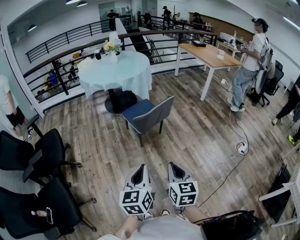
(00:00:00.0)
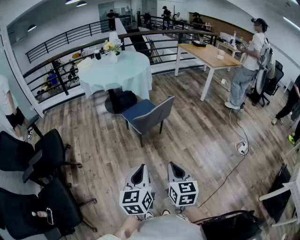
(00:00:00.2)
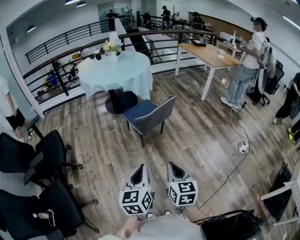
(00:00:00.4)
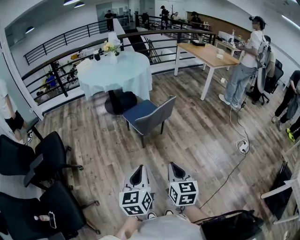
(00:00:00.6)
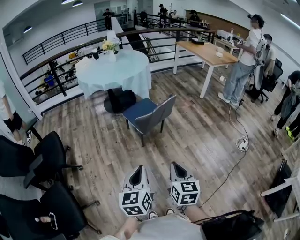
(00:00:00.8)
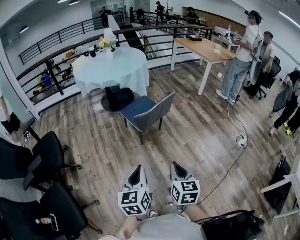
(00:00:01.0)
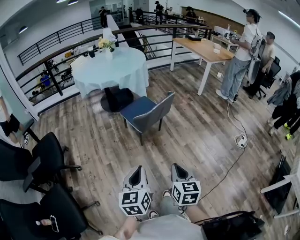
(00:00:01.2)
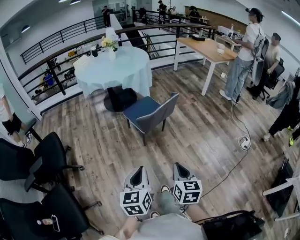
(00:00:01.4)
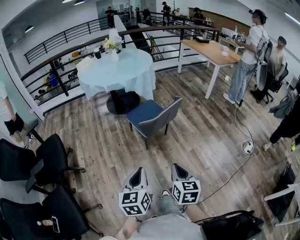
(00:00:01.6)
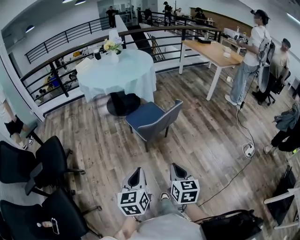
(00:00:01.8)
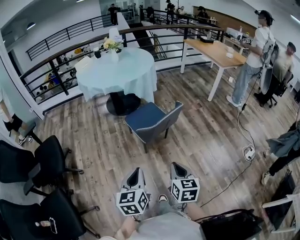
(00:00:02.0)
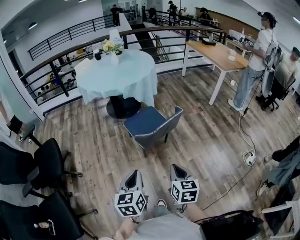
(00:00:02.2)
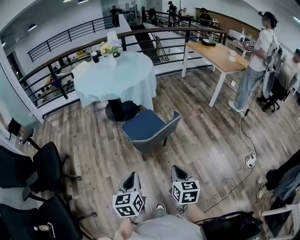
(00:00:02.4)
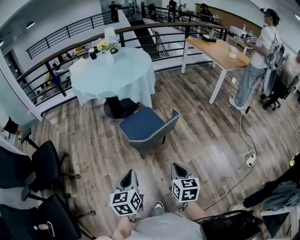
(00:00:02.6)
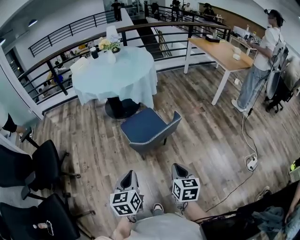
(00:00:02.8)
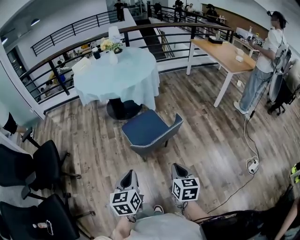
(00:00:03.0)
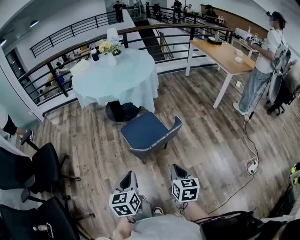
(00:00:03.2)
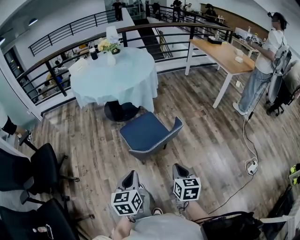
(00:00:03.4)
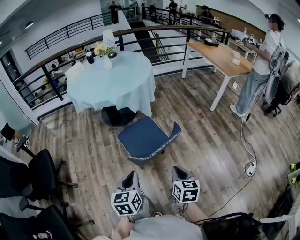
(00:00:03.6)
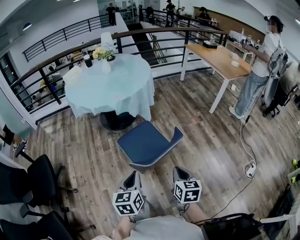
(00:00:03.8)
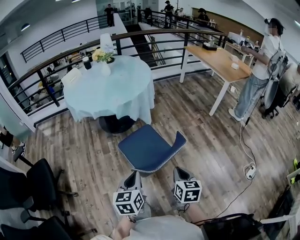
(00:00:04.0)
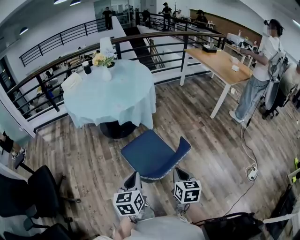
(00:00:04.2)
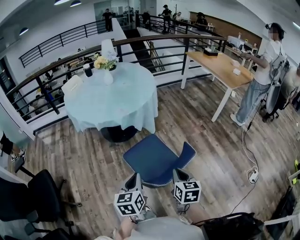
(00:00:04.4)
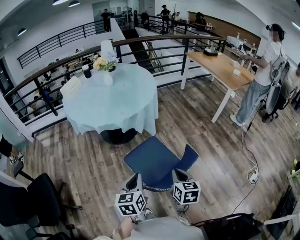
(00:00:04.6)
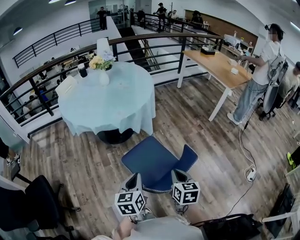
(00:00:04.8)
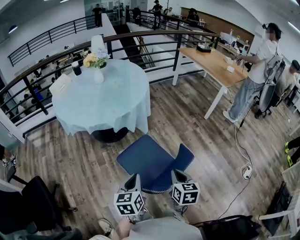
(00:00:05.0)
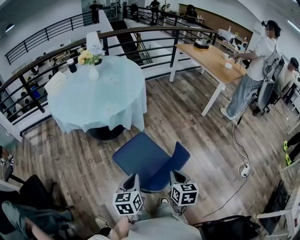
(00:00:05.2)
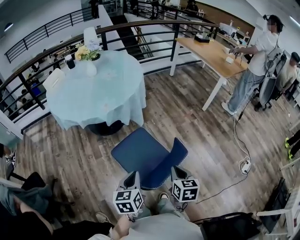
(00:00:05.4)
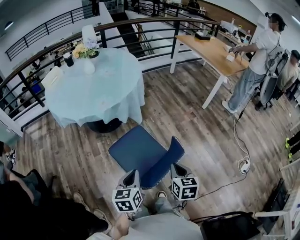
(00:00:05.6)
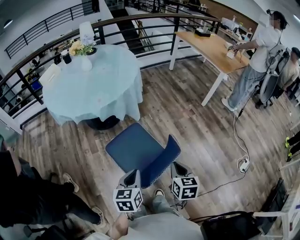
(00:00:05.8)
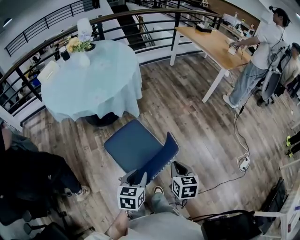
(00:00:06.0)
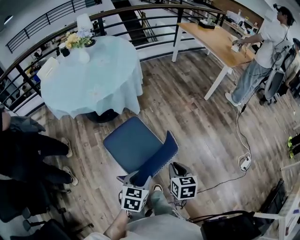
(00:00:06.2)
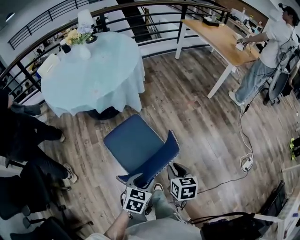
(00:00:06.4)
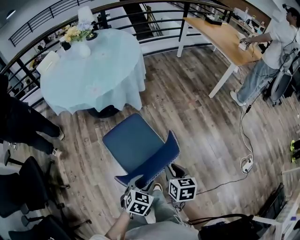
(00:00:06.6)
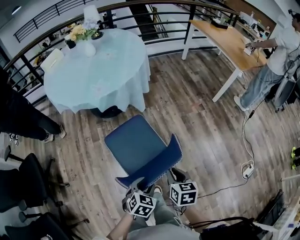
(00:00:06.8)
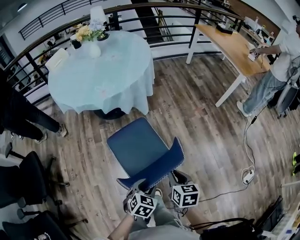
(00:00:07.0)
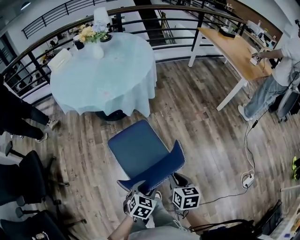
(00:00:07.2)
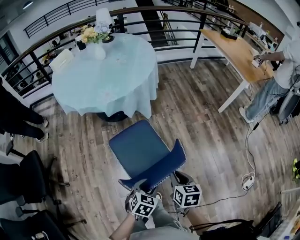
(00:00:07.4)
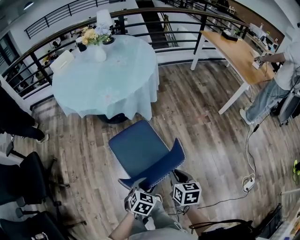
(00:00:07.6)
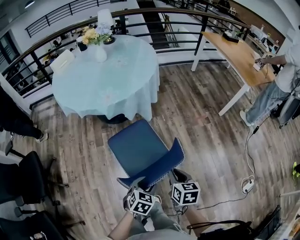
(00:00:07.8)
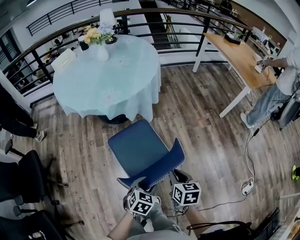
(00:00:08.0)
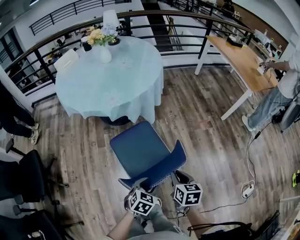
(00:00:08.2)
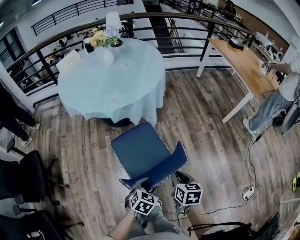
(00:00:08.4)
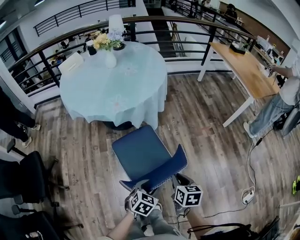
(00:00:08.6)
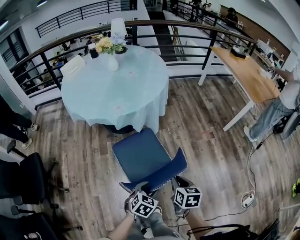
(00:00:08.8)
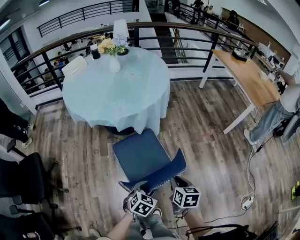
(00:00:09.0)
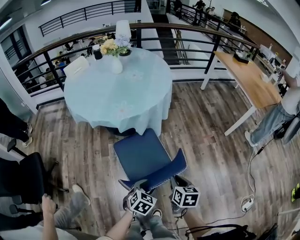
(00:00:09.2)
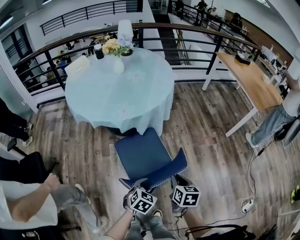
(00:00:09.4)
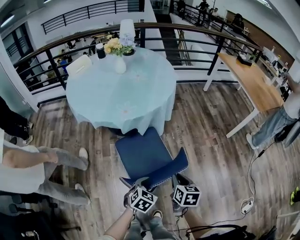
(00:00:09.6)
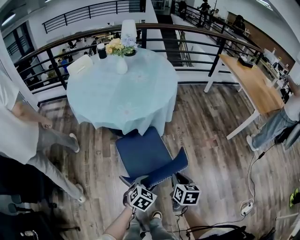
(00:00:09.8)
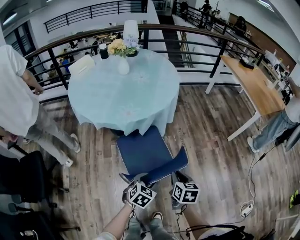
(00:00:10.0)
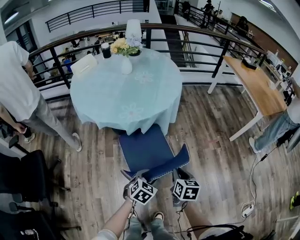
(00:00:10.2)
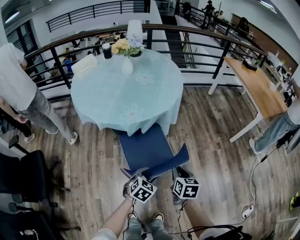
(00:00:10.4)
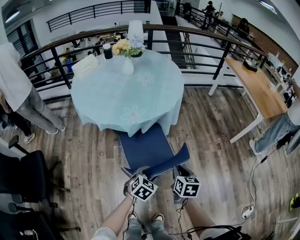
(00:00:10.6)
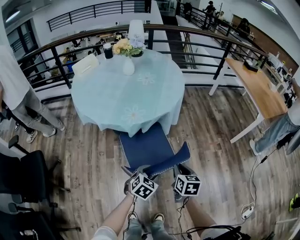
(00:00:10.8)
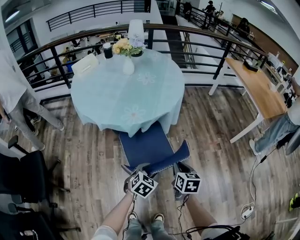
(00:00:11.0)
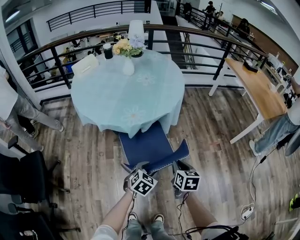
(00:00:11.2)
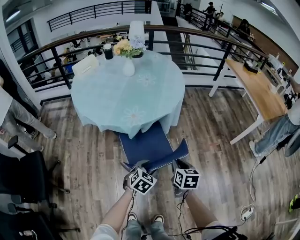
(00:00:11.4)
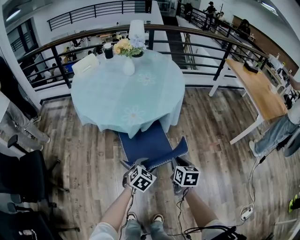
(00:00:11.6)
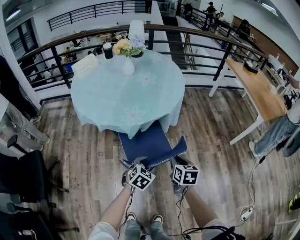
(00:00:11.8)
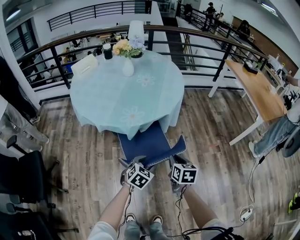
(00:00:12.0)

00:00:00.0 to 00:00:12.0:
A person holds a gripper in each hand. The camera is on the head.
00:00:00.0 to 00:00:01.6: The left gripper goes about 10 cm forward and to the left, while the right gripper moves forward, roughly 10 cm.
00:00:01.6 to 00:00:03.0: The right gripper travels forward and to the right by about 25 cm, while the left gripper travels forward by approximately 20 cm.
00:00:03.0 to 00:00:04.4: The grippers both shift forward by approximately 20 cm.
00:00:04.4 to 00:00:06.0: The left gripper travels to the right and downward by approximately 15 cm, changes its angle by some 20 degrees, and opens up, while the right gripper shifts about 10 cm to the right and forward.
00:00:06.0 to 00:00:07.6: The left gripper is displaced downward by some 10 cm, and opens its fingers. The right gripper shifts some 5 cm forward.
00:00:07.6 to 00:00:09.0: The two grippers go approximately 5 cm forward.
00:00:09.0 to 00:00:10.4: The grippers both shift forward and to the left by some 10 cm.
00:00:10.4 to 00:00:12.0: Both grippers travel together forward, some 10 cm.

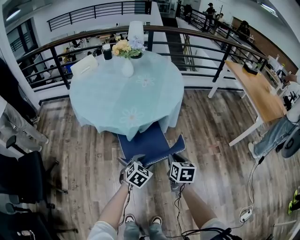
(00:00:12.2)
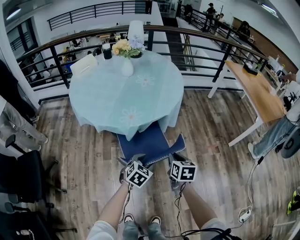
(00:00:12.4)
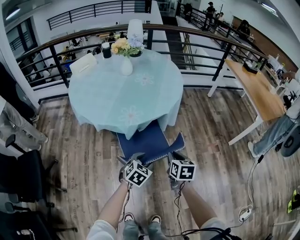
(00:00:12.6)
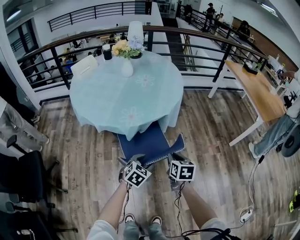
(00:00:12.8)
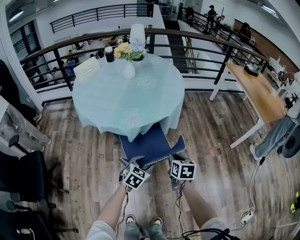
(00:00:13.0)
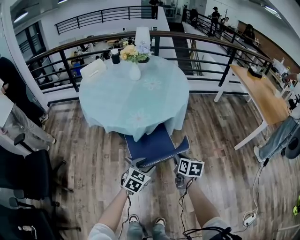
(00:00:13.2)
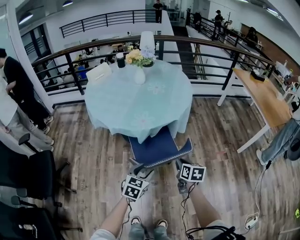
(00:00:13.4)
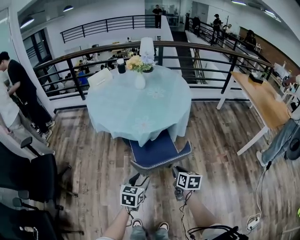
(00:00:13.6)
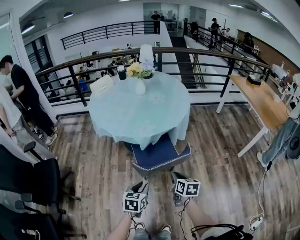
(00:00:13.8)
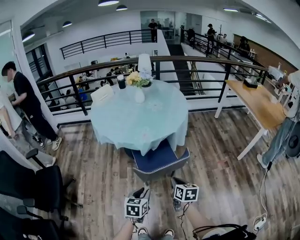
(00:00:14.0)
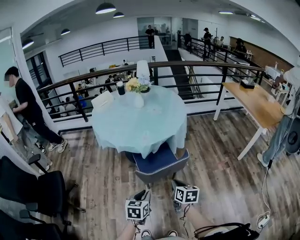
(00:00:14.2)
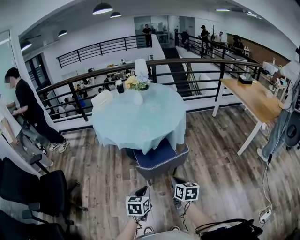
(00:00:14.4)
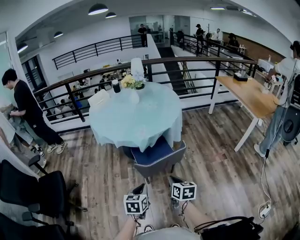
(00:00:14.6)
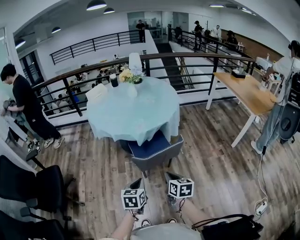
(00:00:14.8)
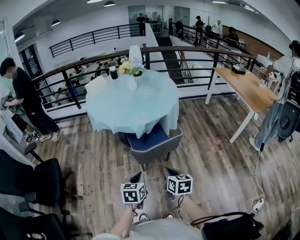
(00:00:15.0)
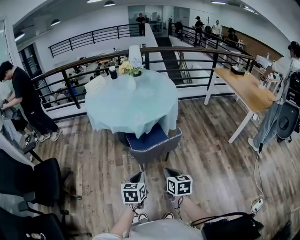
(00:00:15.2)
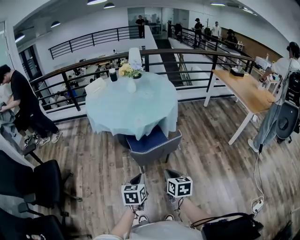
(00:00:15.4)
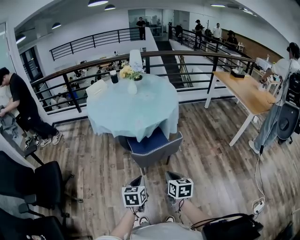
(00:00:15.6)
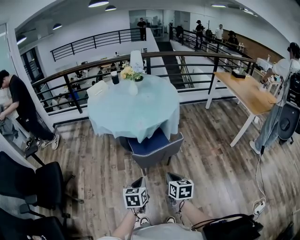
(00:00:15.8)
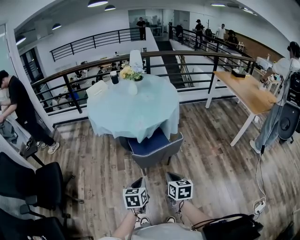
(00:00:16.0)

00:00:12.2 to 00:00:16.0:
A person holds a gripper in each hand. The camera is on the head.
00:00:12.2 to 00:00:13.4: The left gripper is displaced backward and upward by roughly 10 cm.
00:00:13.4 to 00:00:14.8: The right gripper moves backward and to the left, roughly 20 cm. Meanwhile the left gripper travels backward by about 15 cm, and closes up.
00:00:14.8 to 00:00:16.0: The grippers move only a little.

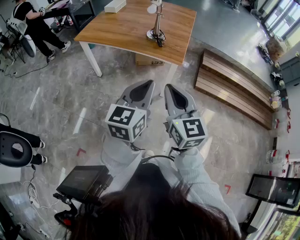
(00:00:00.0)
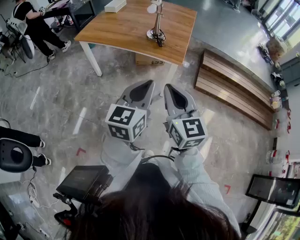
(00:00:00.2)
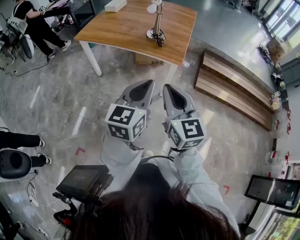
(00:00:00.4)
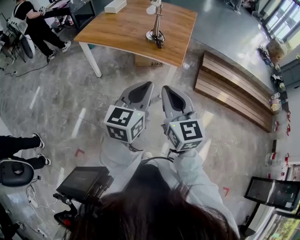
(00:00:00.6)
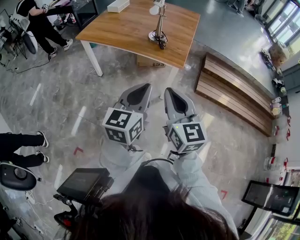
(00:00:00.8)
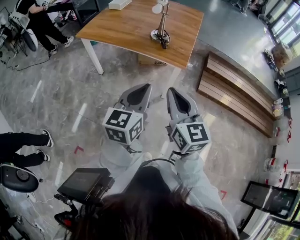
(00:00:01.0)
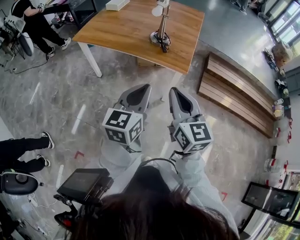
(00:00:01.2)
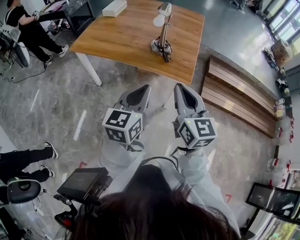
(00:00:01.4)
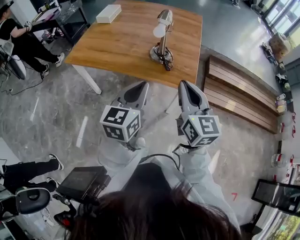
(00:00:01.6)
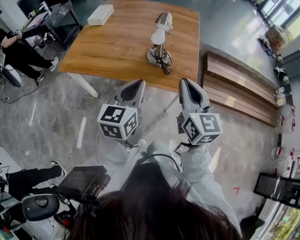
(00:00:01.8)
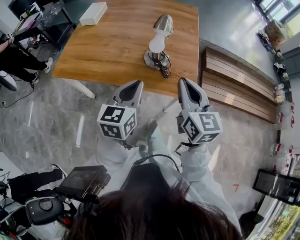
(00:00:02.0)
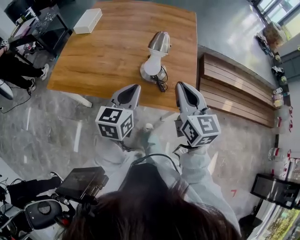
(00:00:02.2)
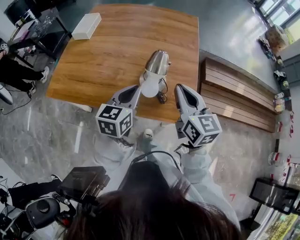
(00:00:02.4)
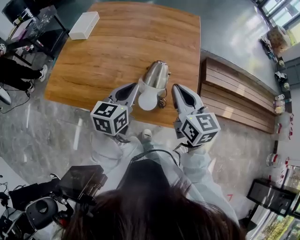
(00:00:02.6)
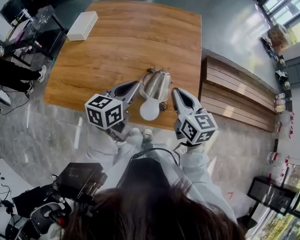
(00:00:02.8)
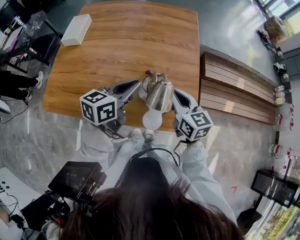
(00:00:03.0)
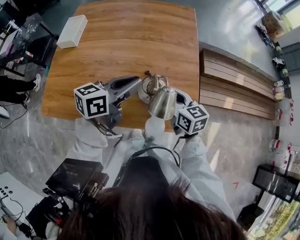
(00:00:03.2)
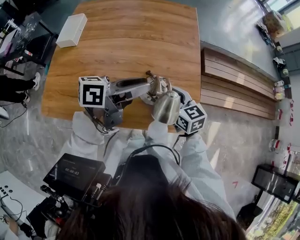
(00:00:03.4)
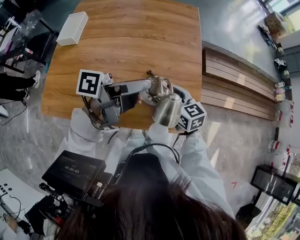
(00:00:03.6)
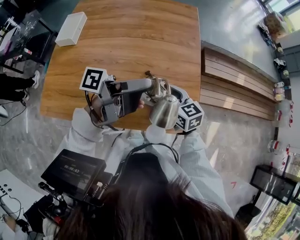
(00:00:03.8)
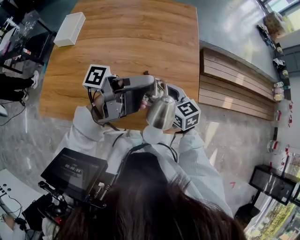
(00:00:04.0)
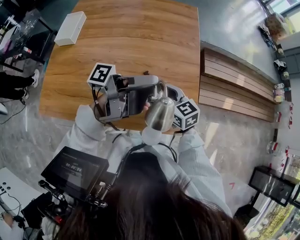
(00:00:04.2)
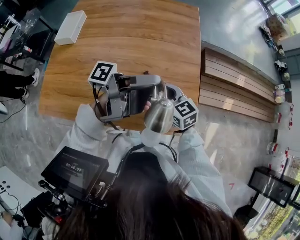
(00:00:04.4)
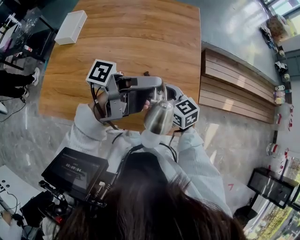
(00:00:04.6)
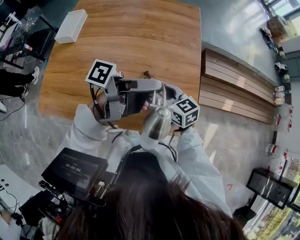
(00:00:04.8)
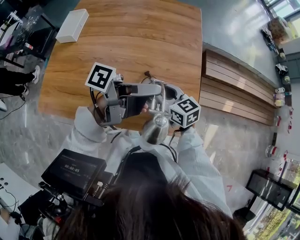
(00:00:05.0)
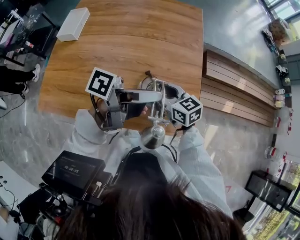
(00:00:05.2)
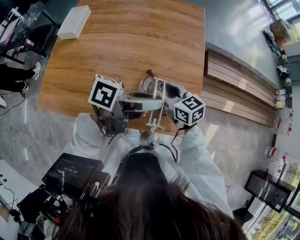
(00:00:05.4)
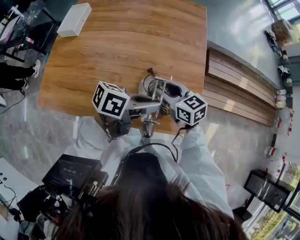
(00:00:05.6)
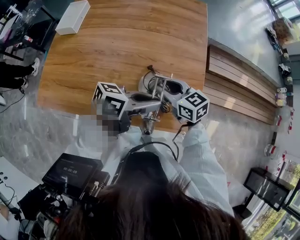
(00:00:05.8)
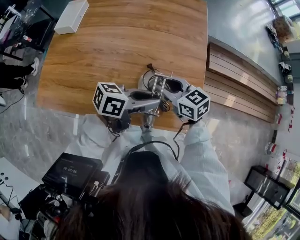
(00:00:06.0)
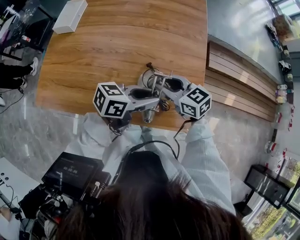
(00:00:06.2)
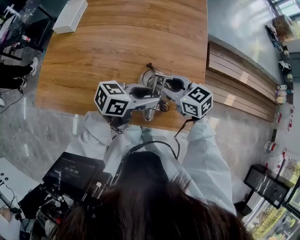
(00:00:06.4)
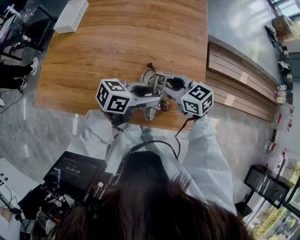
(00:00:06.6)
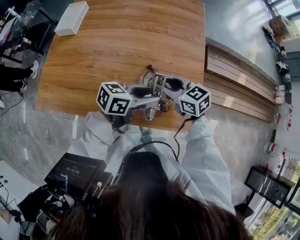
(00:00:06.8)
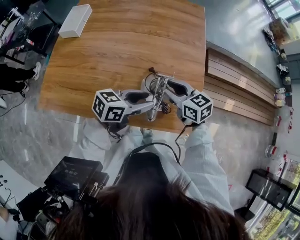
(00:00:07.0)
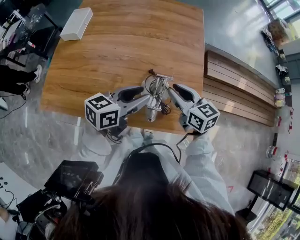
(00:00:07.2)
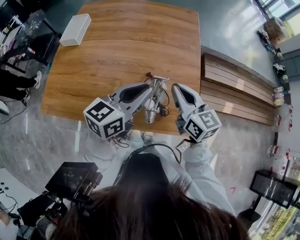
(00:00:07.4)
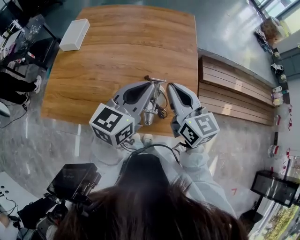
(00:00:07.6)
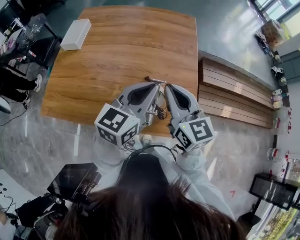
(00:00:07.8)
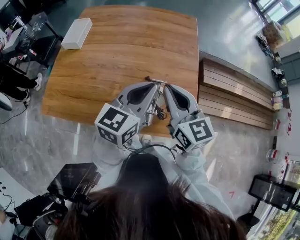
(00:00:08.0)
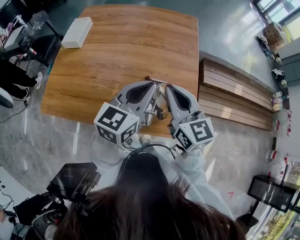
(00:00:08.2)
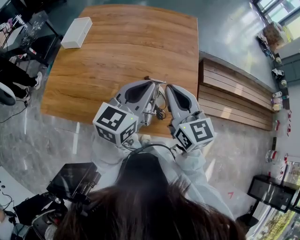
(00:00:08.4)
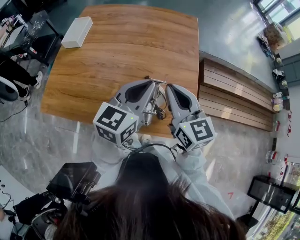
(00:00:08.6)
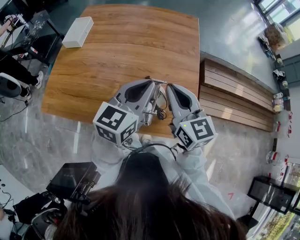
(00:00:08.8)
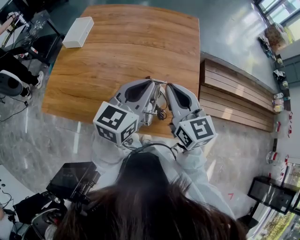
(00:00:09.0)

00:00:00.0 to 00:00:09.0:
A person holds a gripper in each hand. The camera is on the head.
00:00:00.0 to 00:00:01.6: Both grippers move forward, approximately 30 cm.
00:00:01.6 to 00:00:03.0: The grippers both shift forward by about 40 cm. The left gripper rotates approximately 30 degrees.
00:00:03.0 to 00:00:04.4: The left gripper travels to the right by some 10 cm, twists about 60 degrees counterclockwise, seen from behind, and opens its fingers; the right gripper goes roughly 10 cm to the left and downward, and opens up.
00:00:04.4 to 00:00:06.0: The left gripper goes approximately 10 cm downward, rotates around the line of its fingers by roughly 50 degrees, clockwise from behind, and closes up.
00:00:06.0 to 00:00:07.6: Both grippers travel together upward, some 15 cm. The right gripper swivels roughly 30 degrees, and closes; the left gripper swivels some 50 degrees, and closes.
00:00:07.6 to 00:00:09.0: The grippers move only a little.
